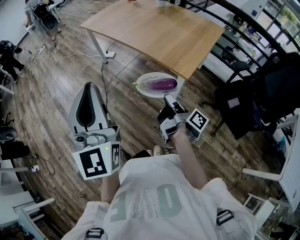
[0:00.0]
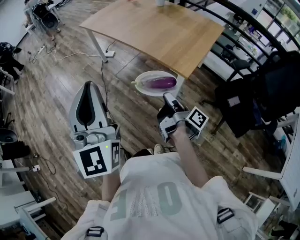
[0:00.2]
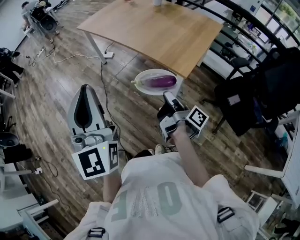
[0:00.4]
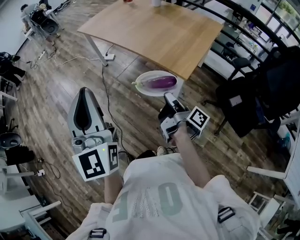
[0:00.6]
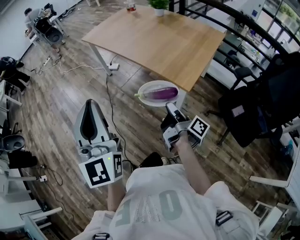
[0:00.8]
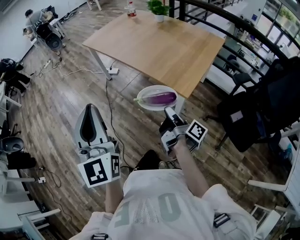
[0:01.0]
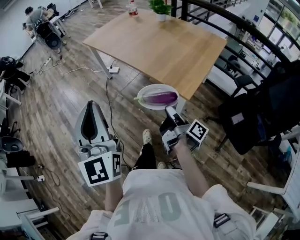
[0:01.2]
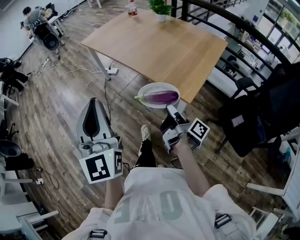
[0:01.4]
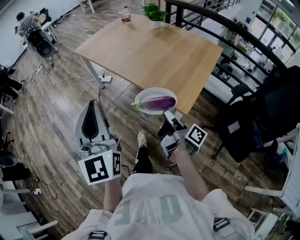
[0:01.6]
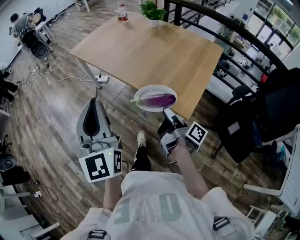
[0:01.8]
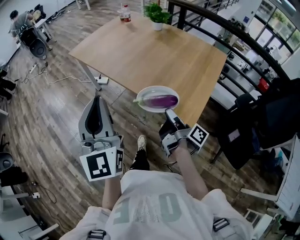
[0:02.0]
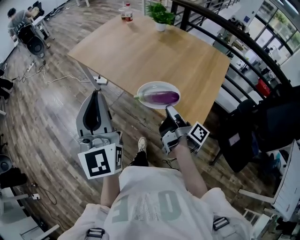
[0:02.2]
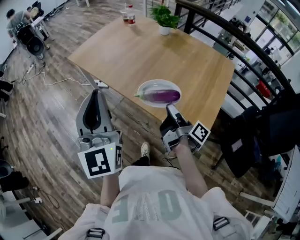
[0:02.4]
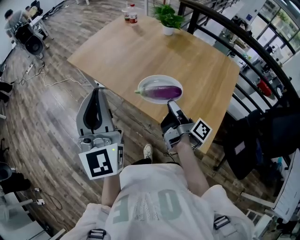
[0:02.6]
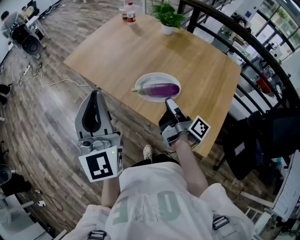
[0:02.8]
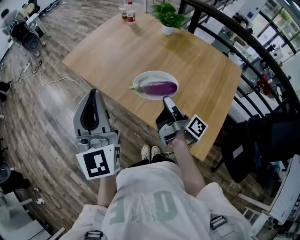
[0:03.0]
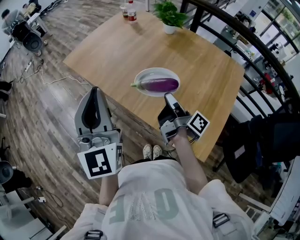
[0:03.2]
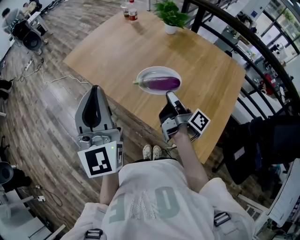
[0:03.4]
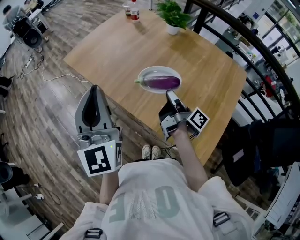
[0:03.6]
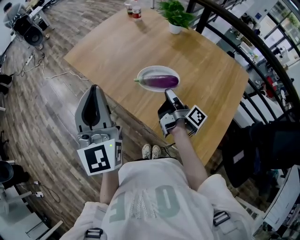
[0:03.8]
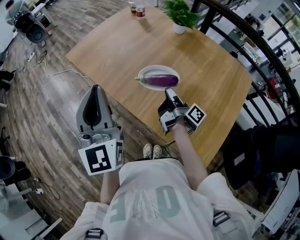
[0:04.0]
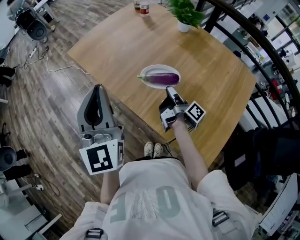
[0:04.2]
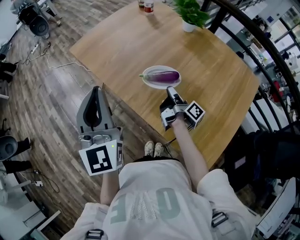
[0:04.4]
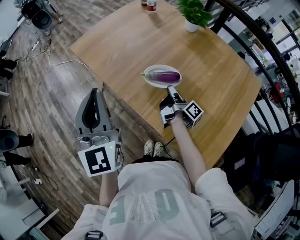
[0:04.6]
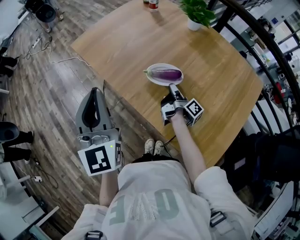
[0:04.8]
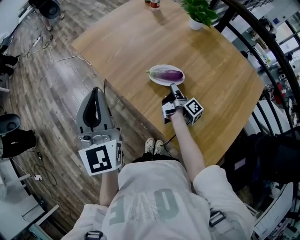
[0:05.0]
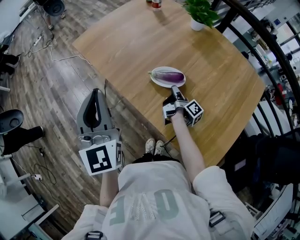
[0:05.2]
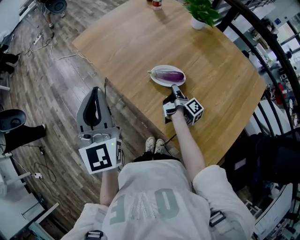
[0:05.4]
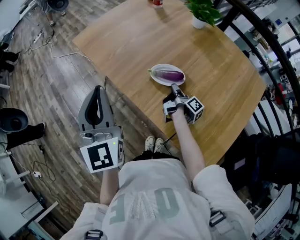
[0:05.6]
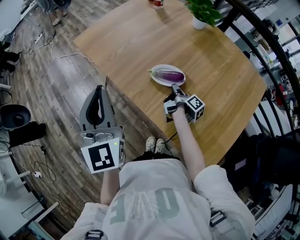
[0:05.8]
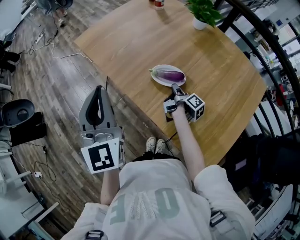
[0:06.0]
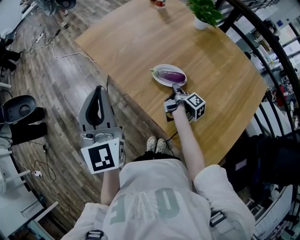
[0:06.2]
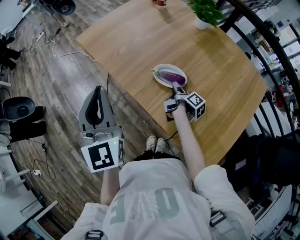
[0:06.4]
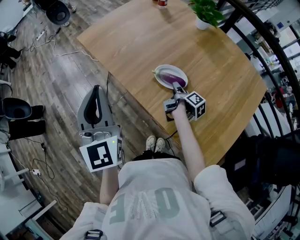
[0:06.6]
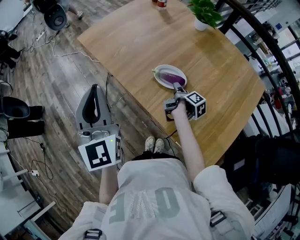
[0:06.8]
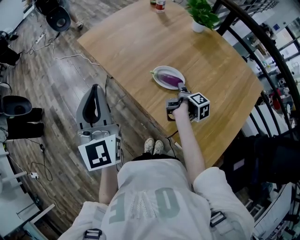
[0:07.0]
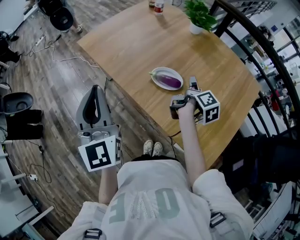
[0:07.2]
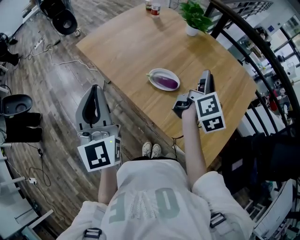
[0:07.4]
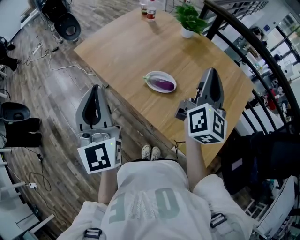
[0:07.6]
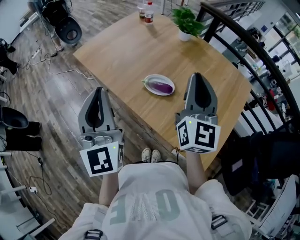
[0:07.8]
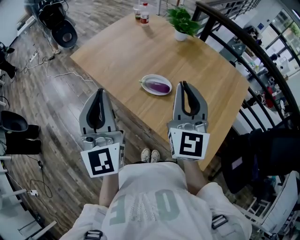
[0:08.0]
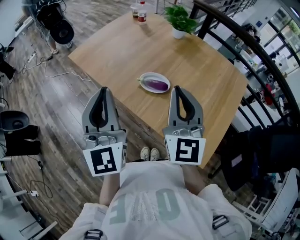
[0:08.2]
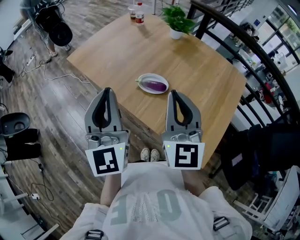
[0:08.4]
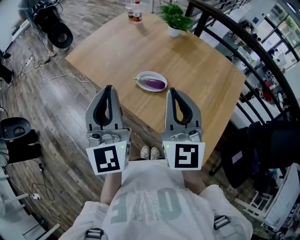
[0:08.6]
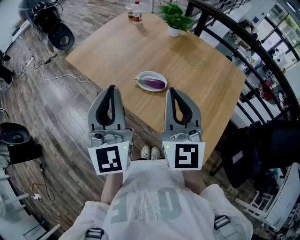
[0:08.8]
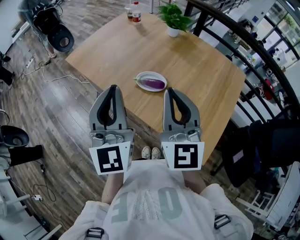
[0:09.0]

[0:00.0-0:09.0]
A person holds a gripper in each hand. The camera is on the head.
0:00.0 to 0:01.6: The left gripper moves about 15 cm.
0:01.6 to 0:03.0: The left gripper shifts by about 30 cm.
0:03.0 to 0:04.4: The left gripper changes place by roughly 10 cm.
0:06.0 to 0:07.6: The left gripper ends up some 5 cm from where it was.
0:07.6 to 0:09.0: The left gripper changes place by some 10 cm.

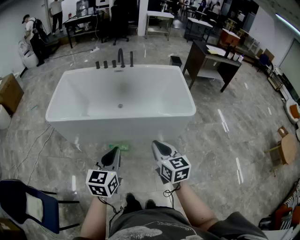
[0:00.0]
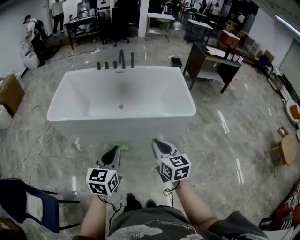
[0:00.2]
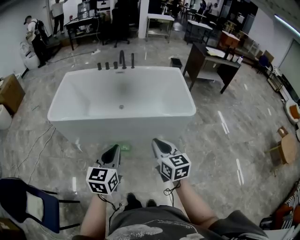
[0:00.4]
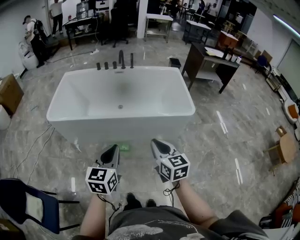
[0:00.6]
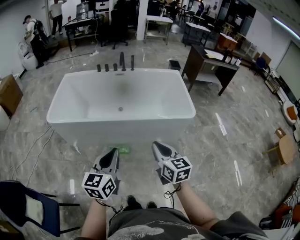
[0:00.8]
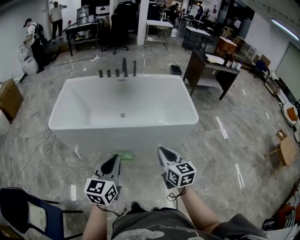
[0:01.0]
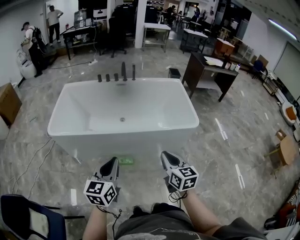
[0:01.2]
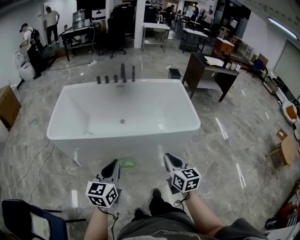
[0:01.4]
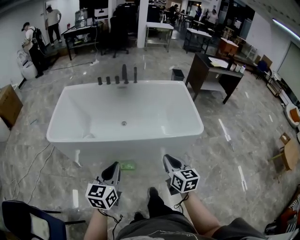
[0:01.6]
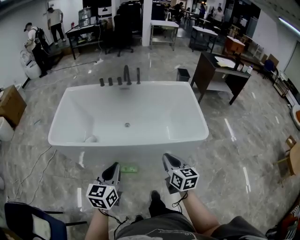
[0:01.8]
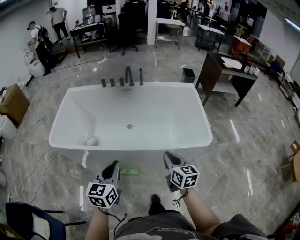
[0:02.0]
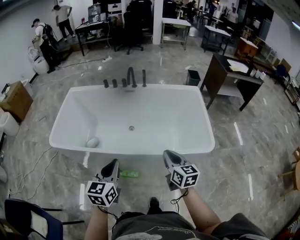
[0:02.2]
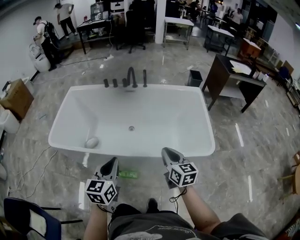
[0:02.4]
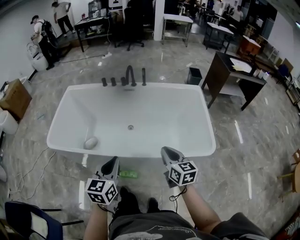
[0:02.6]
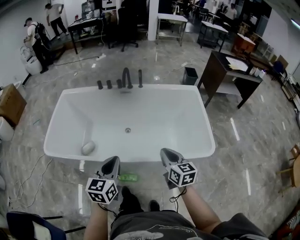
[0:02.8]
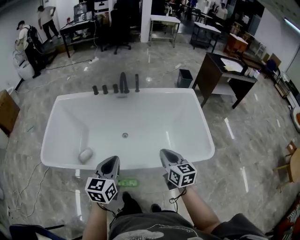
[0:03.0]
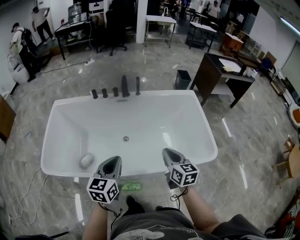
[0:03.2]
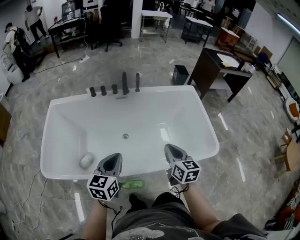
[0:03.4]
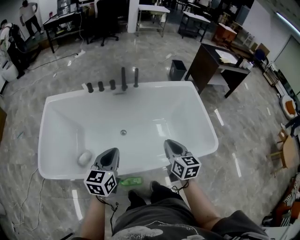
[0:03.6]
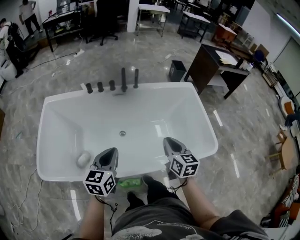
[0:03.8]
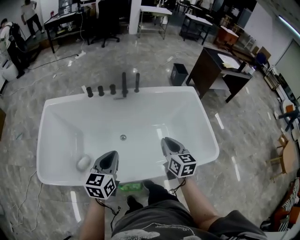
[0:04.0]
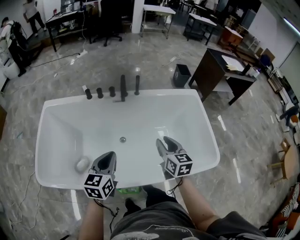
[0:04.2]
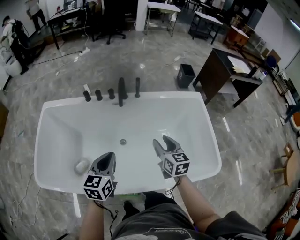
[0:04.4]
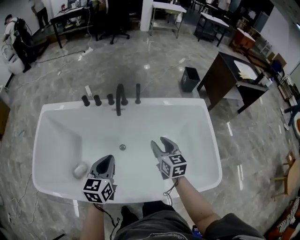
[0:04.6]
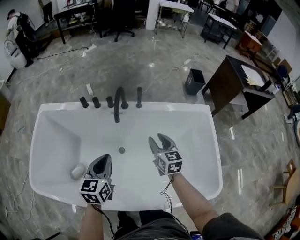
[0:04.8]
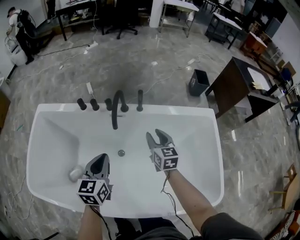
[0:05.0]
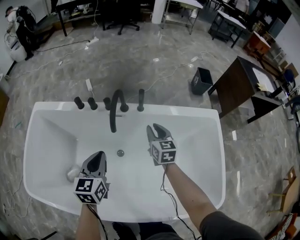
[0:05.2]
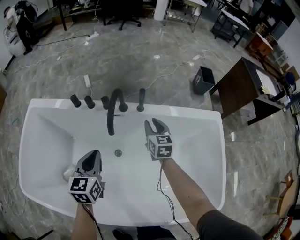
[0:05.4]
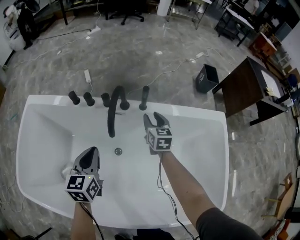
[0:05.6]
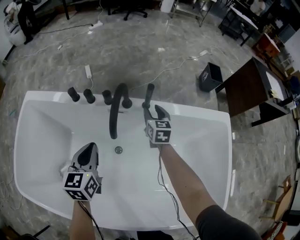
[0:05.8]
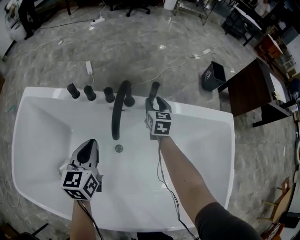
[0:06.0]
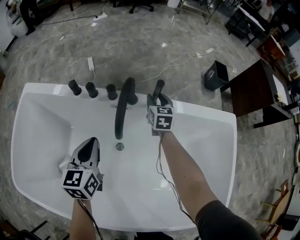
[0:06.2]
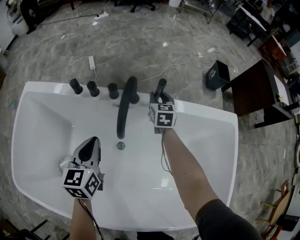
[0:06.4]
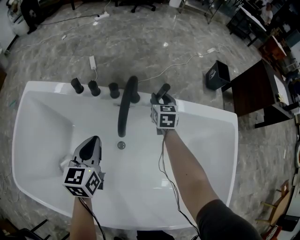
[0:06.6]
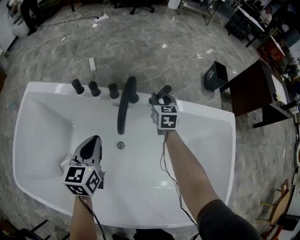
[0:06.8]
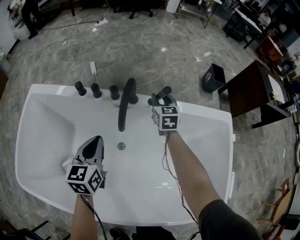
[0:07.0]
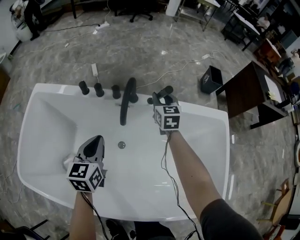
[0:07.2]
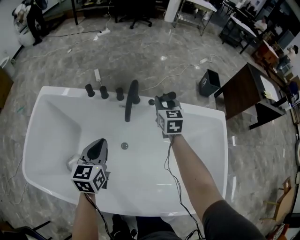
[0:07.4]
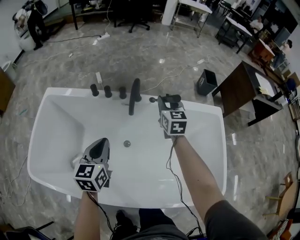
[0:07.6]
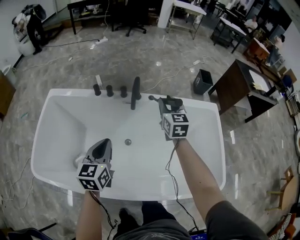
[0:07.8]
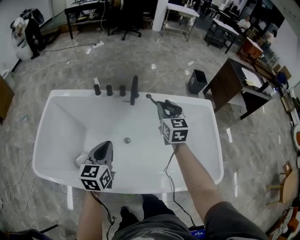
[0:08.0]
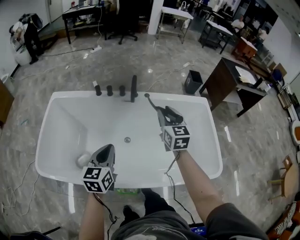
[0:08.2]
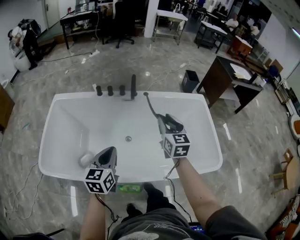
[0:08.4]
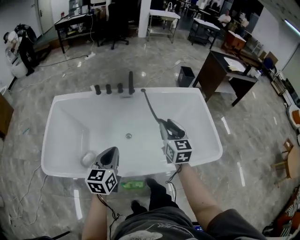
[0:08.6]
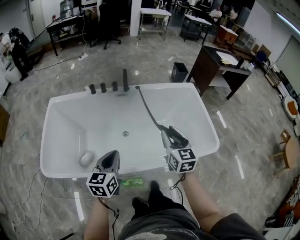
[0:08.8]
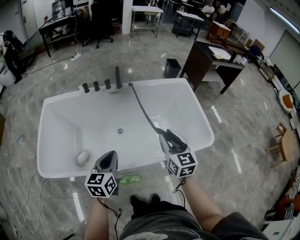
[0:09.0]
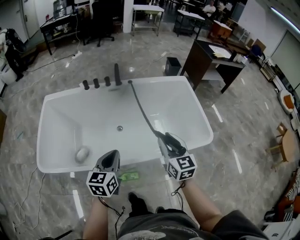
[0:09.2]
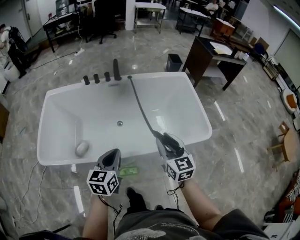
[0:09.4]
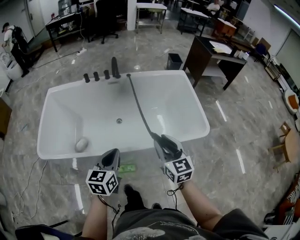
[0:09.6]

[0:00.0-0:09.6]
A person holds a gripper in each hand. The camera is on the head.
0:00.0 to 0:01.6: The left gripper shifts approximately 10 cm forward and to the left. The right gripper goes some 10 cm forward.
0:01.6 to 0:03.2: The grippers both shift forward by approximately 35 cm.
0:03.2 to 0:04.8: The grippers both shift forward by approximately 35 cm. The right gripper opens up.
0:04.8 to 0:06.4: The left gripper travels forward and downward by roughly 25 cm, while the right gripper heads forward and downward, covering roughly 40 cm.
0:06.4 to 0:08.0: Both grippers move backward and upward, roughly 40 cm.
0:08.0 to 0:09.6: The left gripper shifts roughly 30 cm backward; the right gripper goes approximately 50 cm backward.

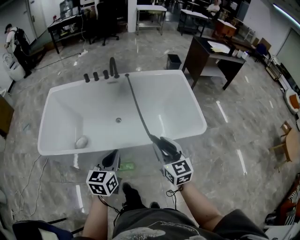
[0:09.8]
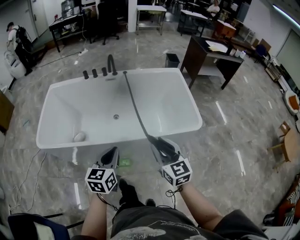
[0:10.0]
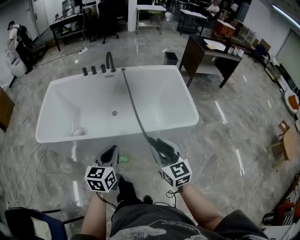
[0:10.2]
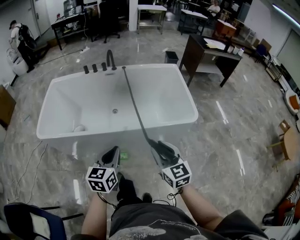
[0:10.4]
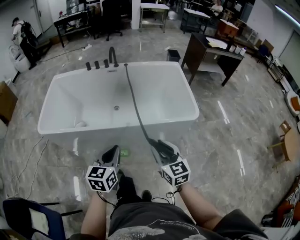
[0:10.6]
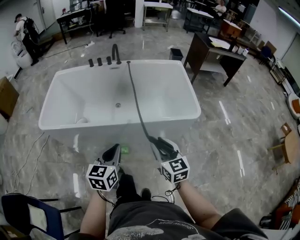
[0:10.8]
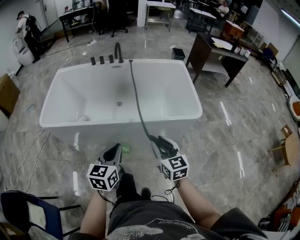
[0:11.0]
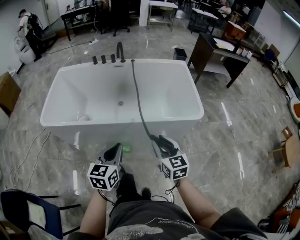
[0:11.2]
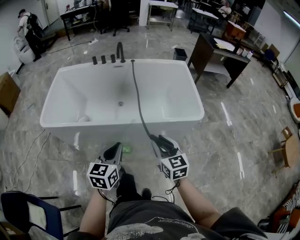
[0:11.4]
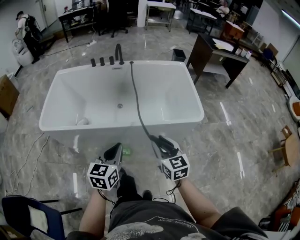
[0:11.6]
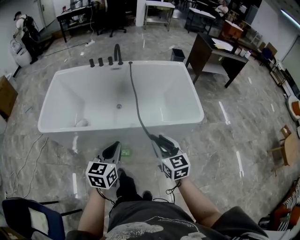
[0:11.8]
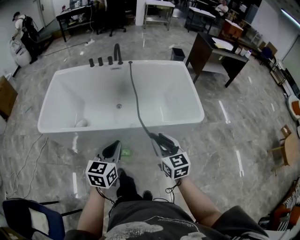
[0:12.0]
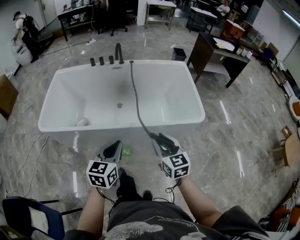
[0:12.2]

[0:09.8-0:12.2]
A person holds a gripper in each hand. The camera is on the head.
0:09.8 to 0:11.0: Both grippers move backward, some 15 cm.
0:11.0 to 0:12.2: The grippers both shift forward by about 5 cm.

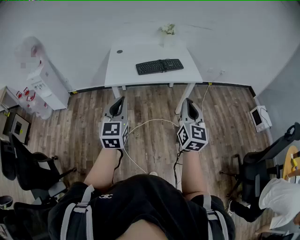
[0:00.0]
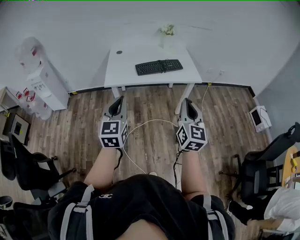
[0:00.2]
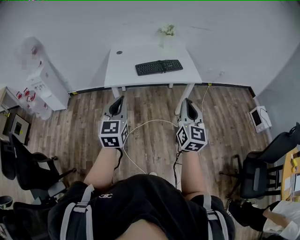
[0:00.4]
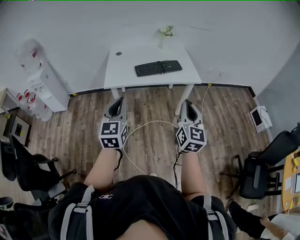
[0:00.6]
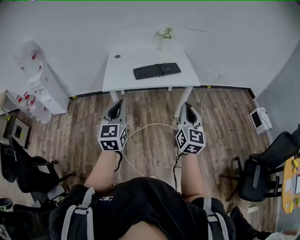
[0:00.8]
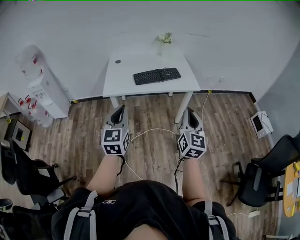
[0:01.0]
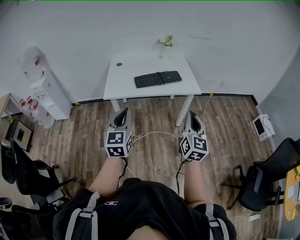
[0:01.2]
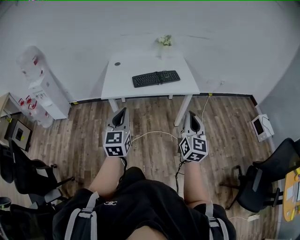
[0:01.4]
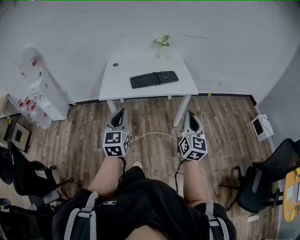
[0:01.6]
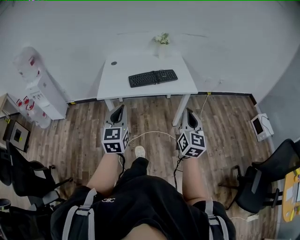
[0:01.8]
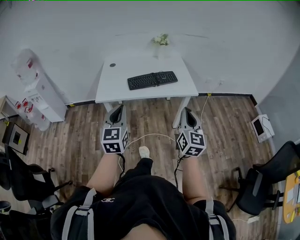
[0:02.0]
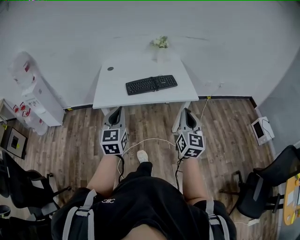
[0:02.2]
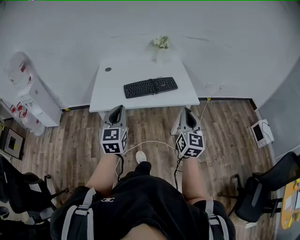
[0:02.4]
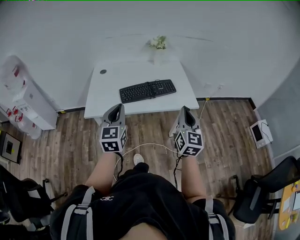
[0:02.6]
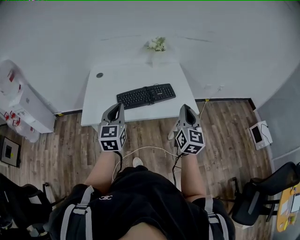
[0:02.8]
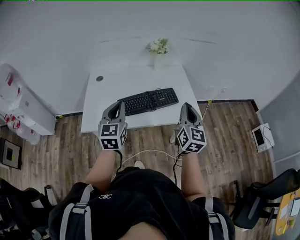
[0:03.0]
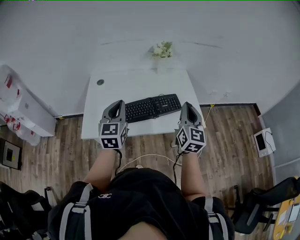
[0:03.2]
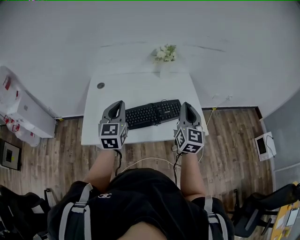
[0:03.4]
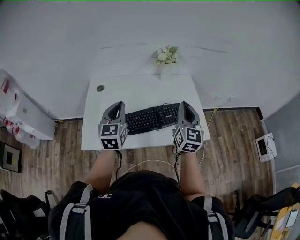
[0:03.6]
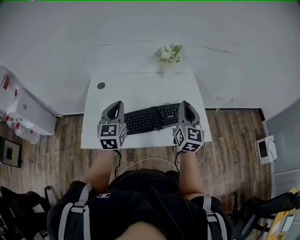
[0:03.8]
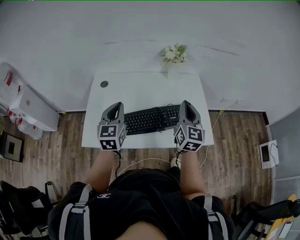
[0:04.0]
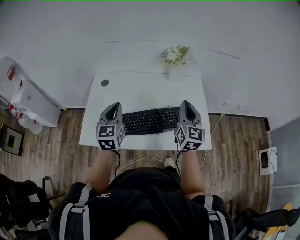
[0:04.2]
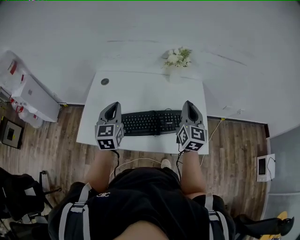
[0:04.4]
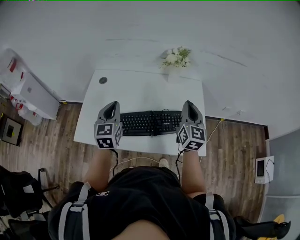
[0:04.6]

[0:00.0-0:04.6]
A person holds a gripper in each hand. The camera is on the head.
0:00.0 to 0:01.6: Both grippers move to the right, some 10 cm.
0:01.6 to 0:03.0: Both grippers are carried forward, about 40 cm.
0:03.0 to 0:04.6: Both grippers travel together forward, approximately 25 cm.
